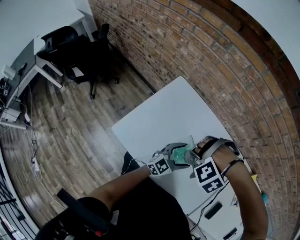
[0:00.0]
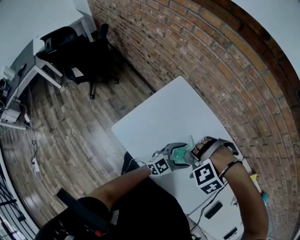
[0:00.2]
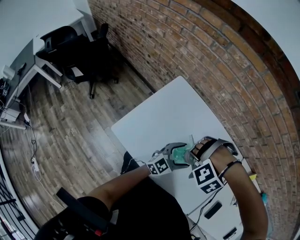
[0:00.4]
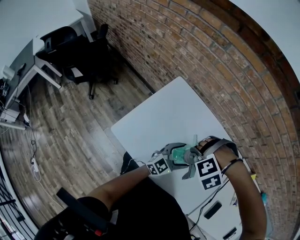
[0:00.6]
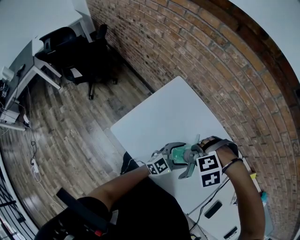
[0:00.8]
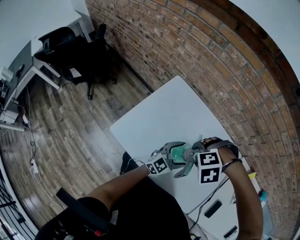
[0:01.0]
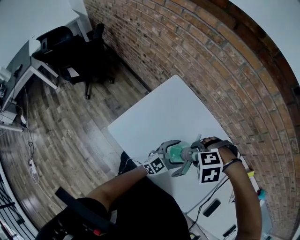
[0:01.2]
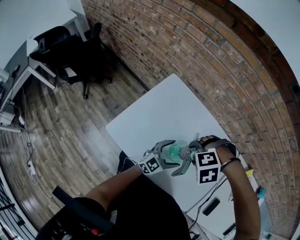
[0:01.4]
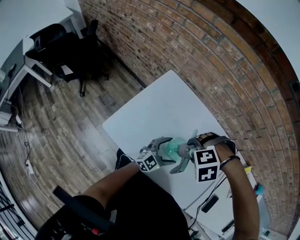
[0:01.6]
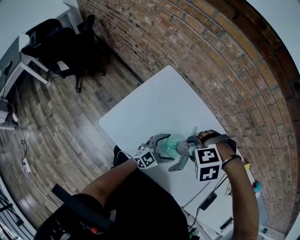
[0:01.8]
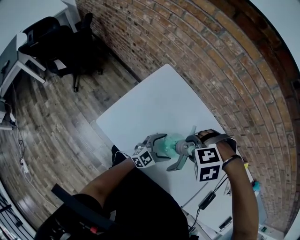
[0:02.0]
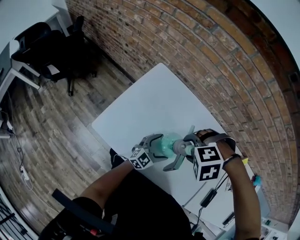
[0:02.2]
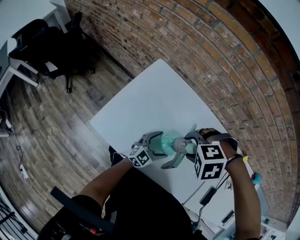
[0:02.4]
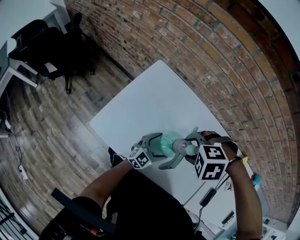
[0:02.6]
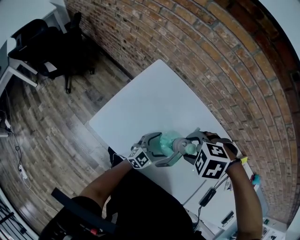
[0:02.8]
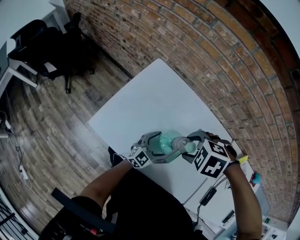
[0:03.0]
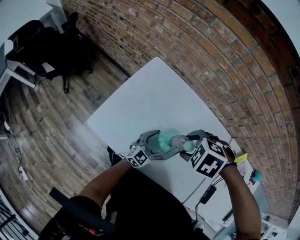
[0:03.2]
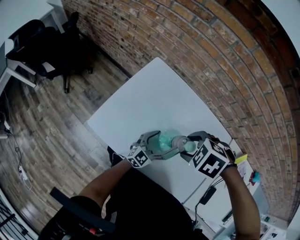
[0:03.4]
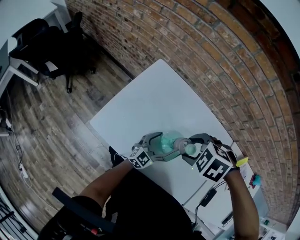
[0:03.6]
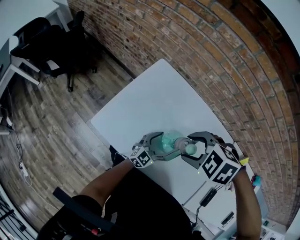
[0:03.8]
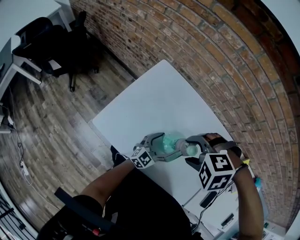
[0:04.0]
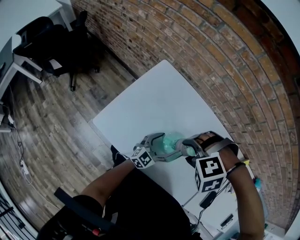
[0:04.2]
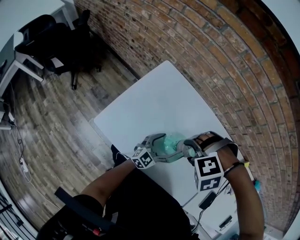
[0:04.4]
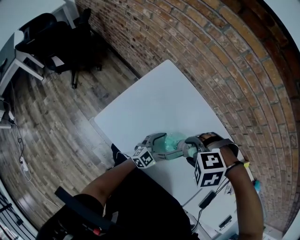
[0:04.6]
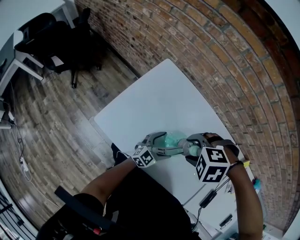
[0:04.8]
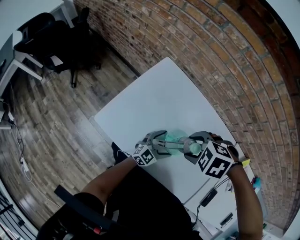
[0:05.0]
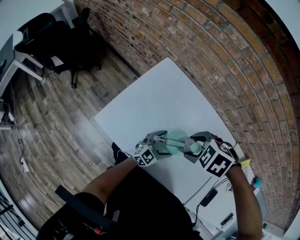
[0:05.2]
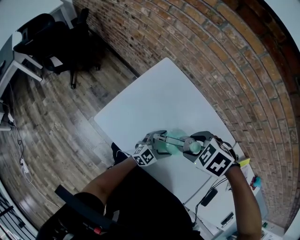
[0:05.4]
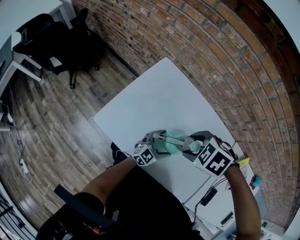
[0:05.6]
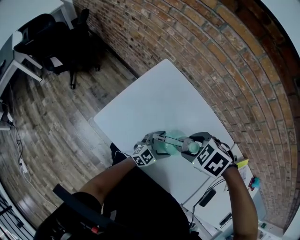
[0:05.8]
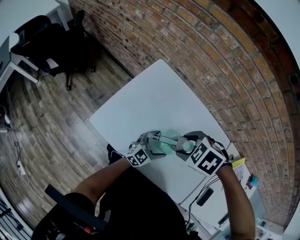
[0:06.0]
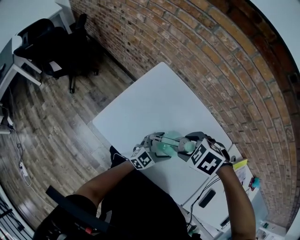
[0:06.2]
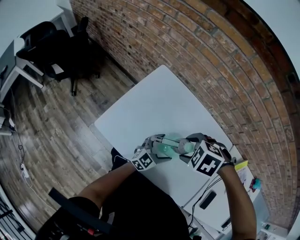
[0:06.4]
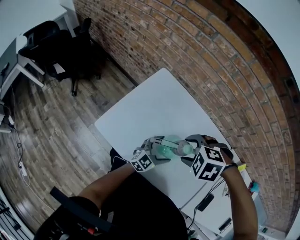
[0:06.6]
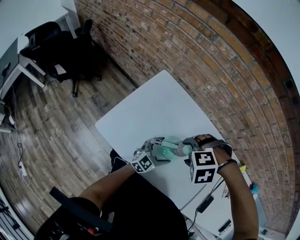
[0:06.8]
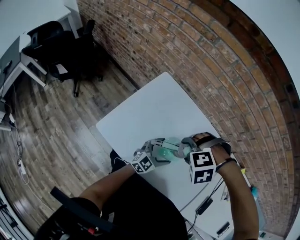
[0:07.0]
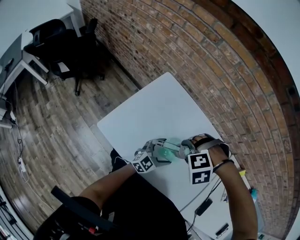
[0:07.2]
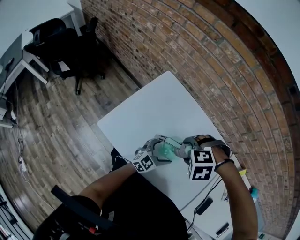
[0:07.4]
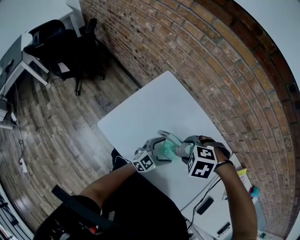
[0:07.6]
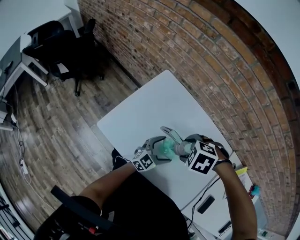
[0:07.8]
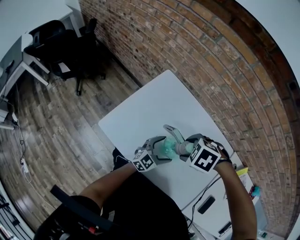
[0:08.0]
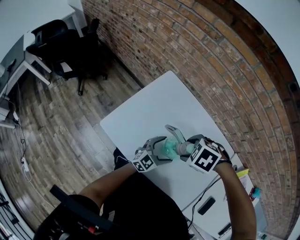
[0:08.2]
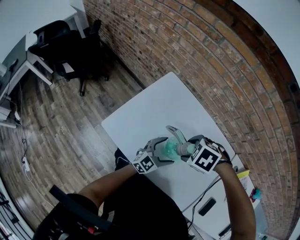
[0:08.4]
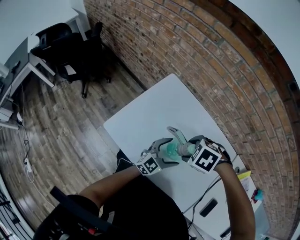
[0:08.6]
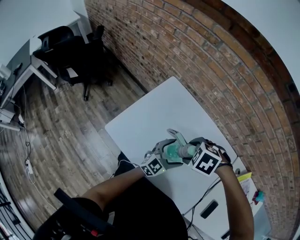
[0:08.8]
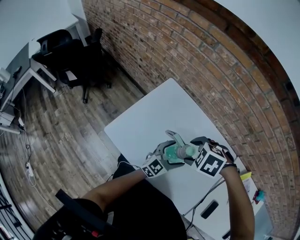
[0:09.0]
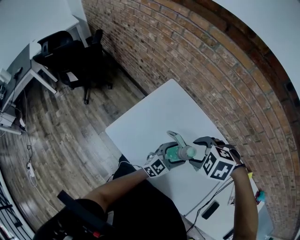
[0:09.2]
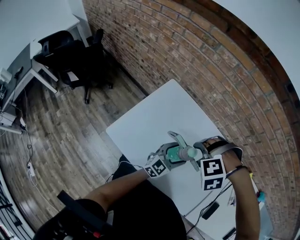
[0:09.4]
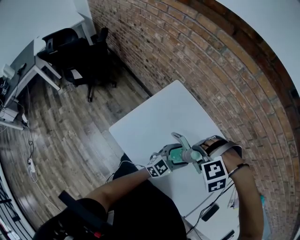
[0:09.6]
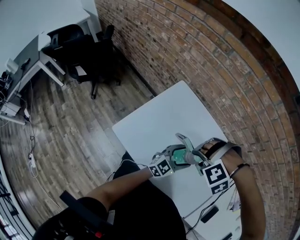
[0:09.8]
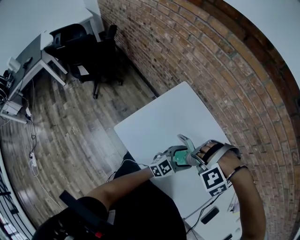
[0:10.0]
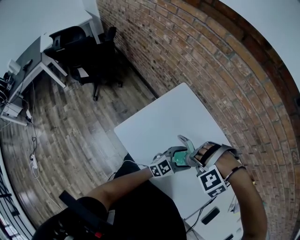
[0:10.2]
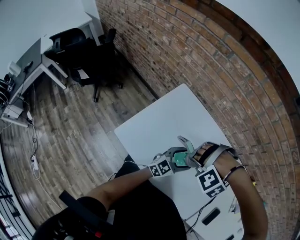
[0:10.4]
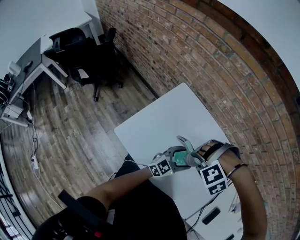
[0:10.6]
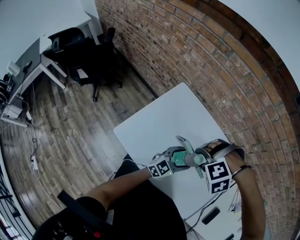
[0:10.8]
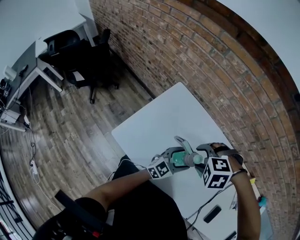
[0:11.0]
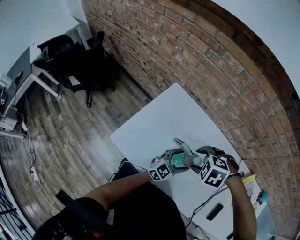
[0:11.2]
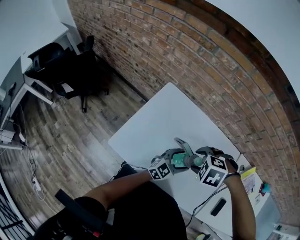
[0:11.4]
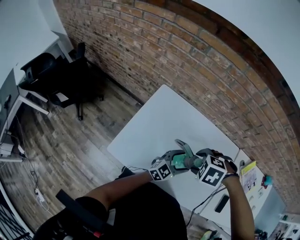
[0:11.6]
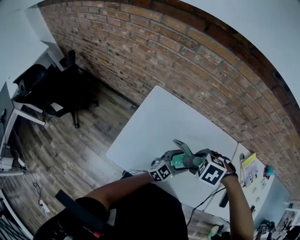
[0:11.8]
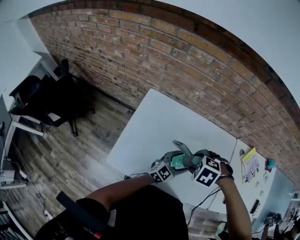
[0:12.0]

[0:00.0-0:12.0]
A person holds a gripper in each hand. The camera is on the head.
0:00.0 to 0:01.6: The right gripper swivels some 30 degrees. Meanwhile the left gripper changes place by about 5 cm.
0:01.6 to 0:03.0: The left gripper is displaced downward by some 5 cm, while the right gripper changes its angle by roughly 40 degrees.
0:03.0 to 0:04.4: The right gripper turns by some 40 degrees.
0:04.4 to 0:06.0: The right gripper twists approximately 50 degrees clockwise, seen from behind.
0:06.0 to 0:07.6: The right gripper swivels about 30 degrees.
0:07.6 to 0:09.0: The left gripper goes approximately 5 cm upward.
0:09.0 to 0:10.4: The right gripper rotates around the line of its fingers by about 70 degrees, counterclockwise from behind.
0:10.4 to 0:12.0: The right gripper twists approximately 90 degrees clockwise, seen from behind.

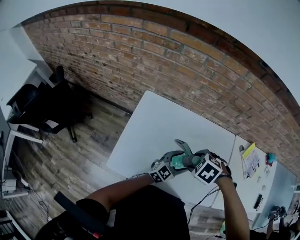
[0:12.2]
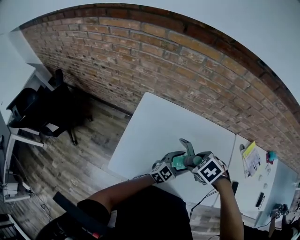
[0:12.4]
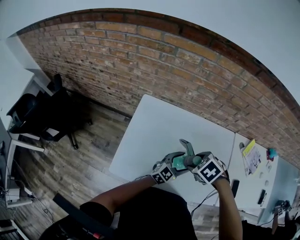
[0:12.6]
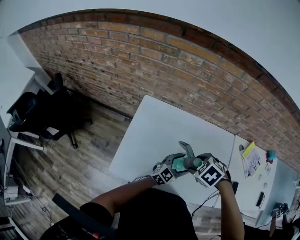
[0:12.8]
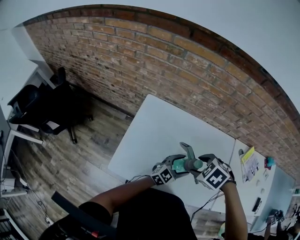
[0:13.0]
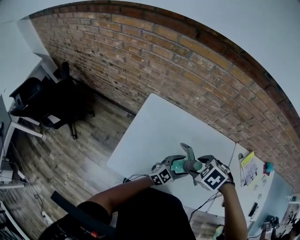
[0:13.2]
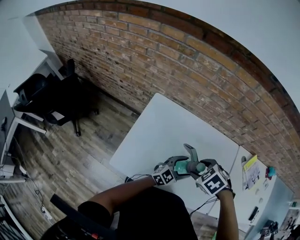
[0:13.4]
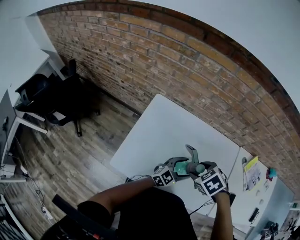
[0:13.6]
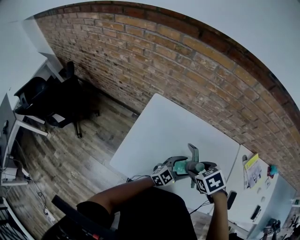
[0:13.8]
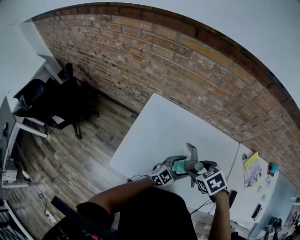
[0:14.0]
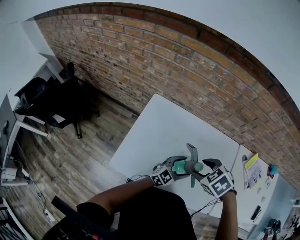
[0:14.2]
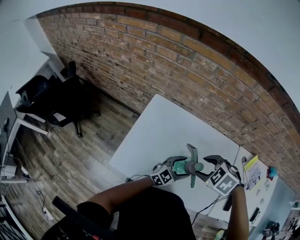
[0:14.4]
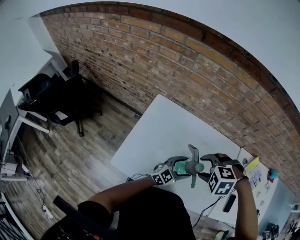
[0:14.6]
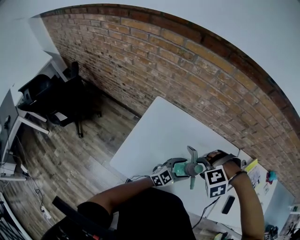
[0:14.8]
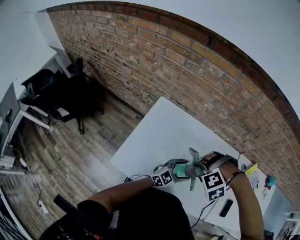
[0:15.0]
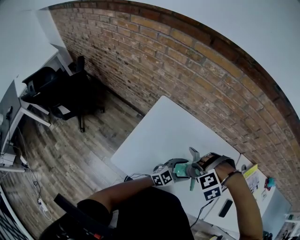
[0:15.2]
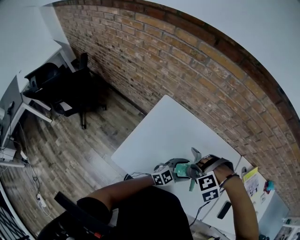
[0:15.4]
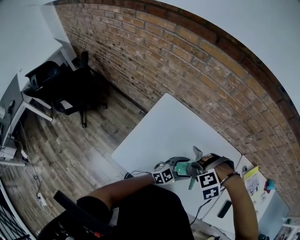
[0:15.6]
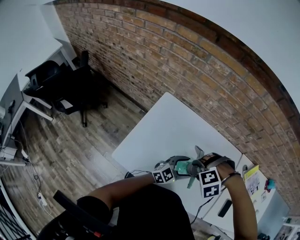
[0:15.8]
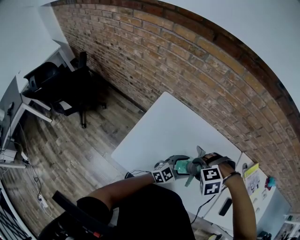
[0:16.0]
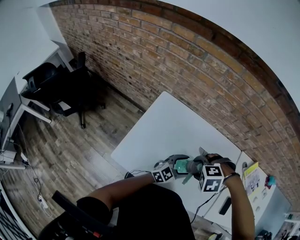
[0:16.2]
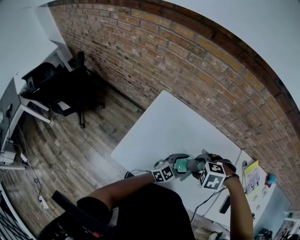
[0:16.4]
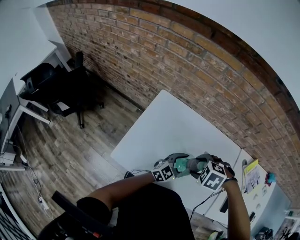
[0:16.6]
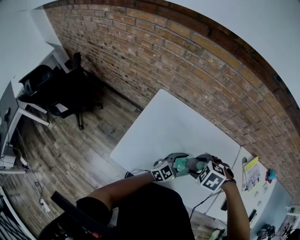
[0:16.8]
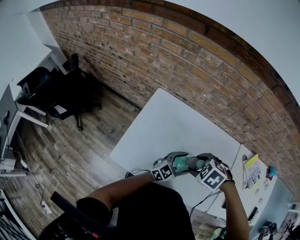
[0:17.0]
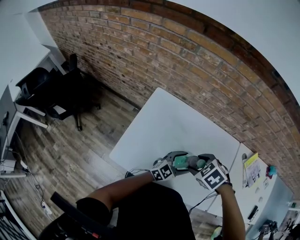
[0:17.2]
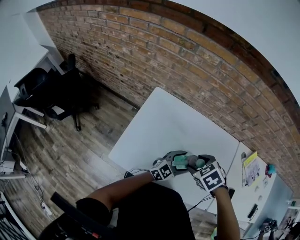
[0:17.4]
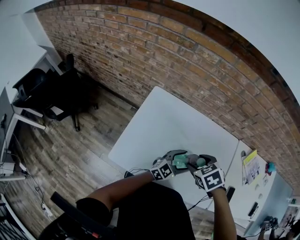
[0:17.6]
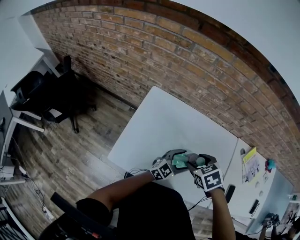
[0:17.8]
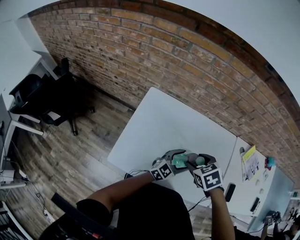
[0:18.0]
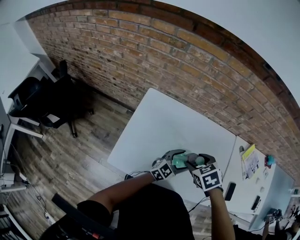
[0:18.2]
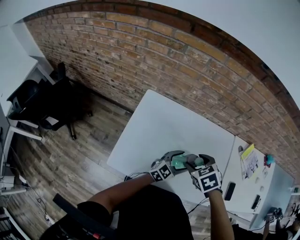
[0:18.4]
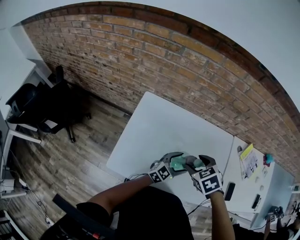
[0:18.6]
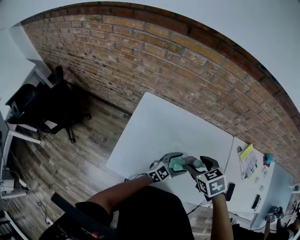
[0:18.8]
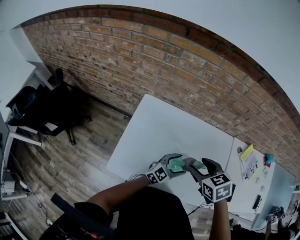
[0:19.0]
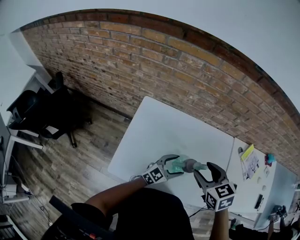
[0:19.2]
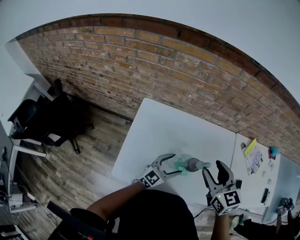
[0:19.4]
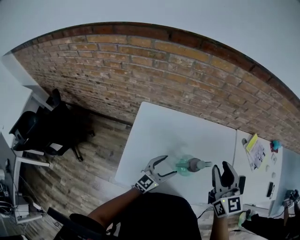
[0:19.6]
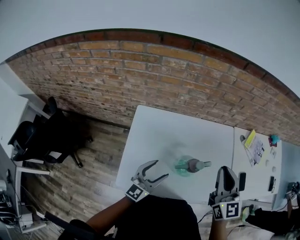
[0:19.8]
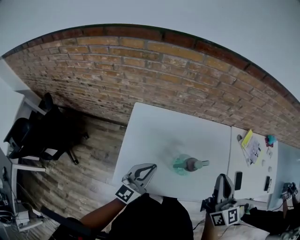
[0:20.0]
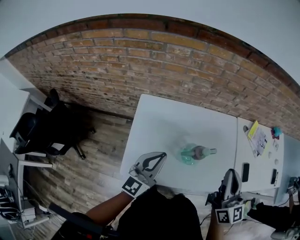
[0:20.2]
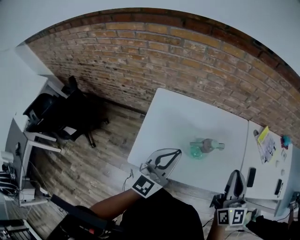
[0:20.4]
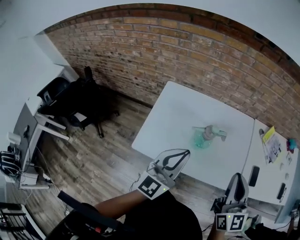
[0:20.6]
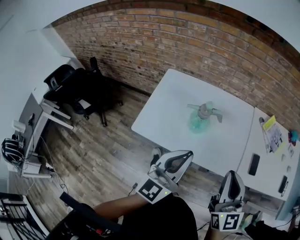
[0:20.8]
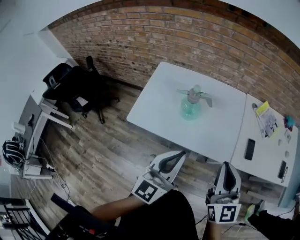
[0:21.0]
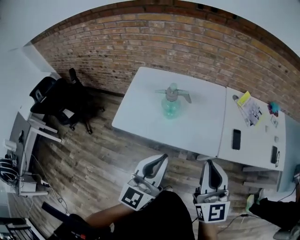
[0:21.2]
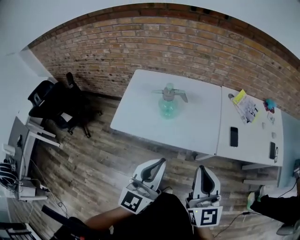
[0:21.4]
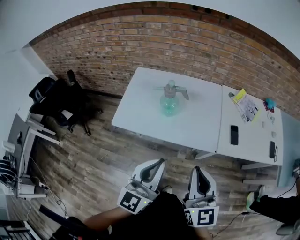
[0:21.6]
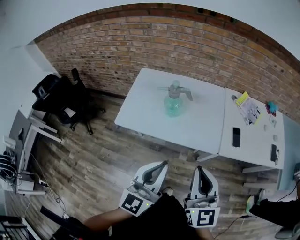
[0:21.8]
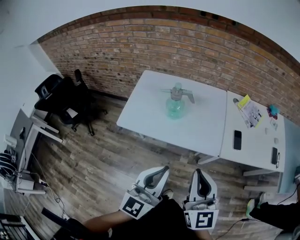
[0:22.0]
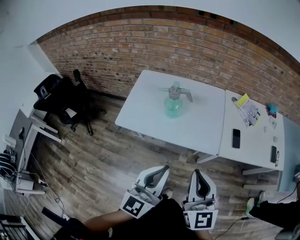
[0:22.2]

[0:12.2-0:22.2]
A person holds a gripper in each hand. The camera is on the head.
0:12.2 to 0:13.6: There are only small adjustments of the grippers.
0:13.6 to 0:15.0: The right gripper twists about 80 degrees counterclockwise, seen from behind.
0:15.0 to 0:16.4: The right gripper swivels about 40 degrees.
0:16.4 to 0:18.0: The right gripper twists roughly 60 degrees clockwise, seen from behind.
0:18.0 to 0:19.4: The left gripper moves to the left, approximately 5 cm; the right gripper moves upward, approximately 10 cm, and points its fingers approximately 40 degrees further upward.
0:19.4 to 0:20.8: The left gripper moves upward and backward, some 30 cm, changes its angle by roughly 30 degrees, and closes. The right gripper heads backward and to the right, covering roughly 30 cm, swivels some 30 degrees, and closes.
0:20.8 to 0:22.2: Both grippers travel together backward, roughly 20 cm.

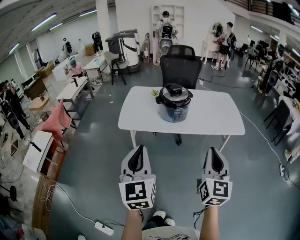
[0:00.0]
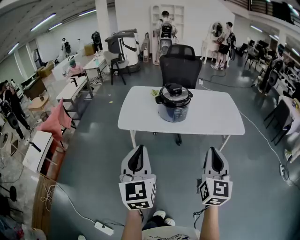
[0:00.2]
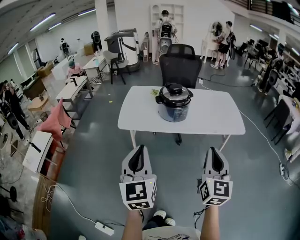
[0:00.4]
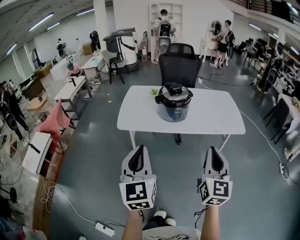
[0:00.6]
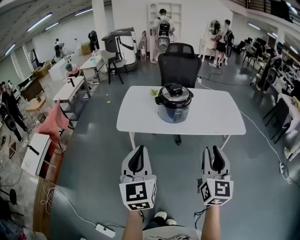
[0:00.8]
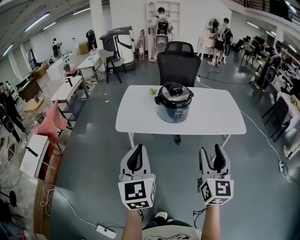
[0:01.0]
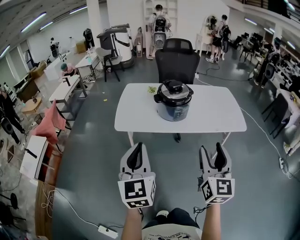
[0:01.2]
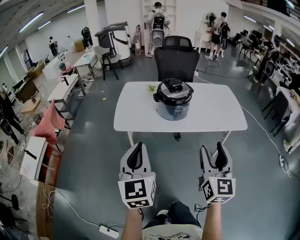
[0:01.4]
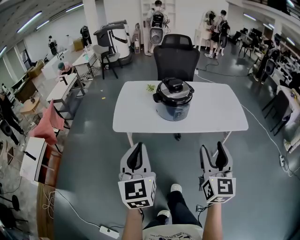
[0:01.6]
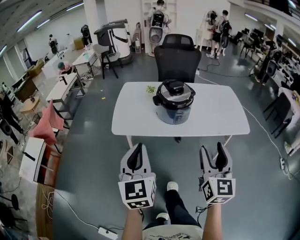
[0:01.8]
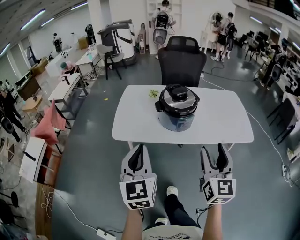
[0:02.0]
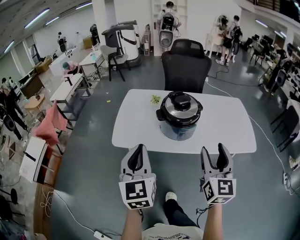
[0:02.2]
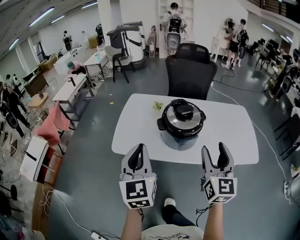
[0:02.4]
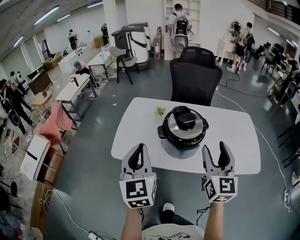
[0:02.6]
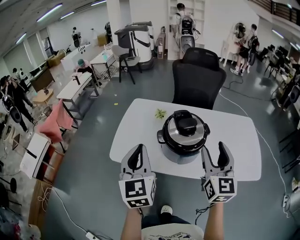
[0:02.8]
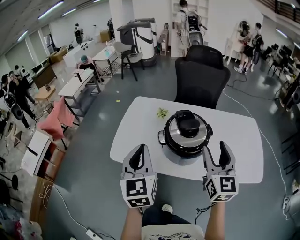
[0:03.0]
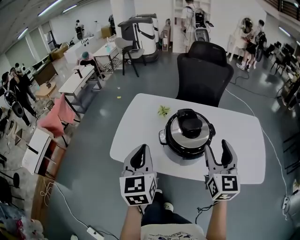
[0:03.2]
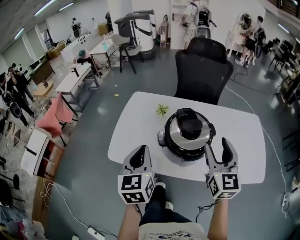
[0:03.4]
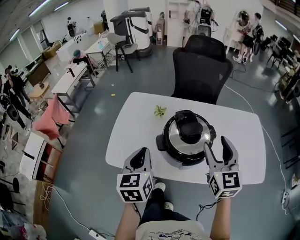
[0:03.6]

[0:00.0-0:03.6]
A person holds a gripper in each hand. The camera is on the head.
0:00.0 to 0:01.8: Both grippers move forward, about 15 cm. The right gripper opens its fingers.
0:01.8 to 0:03.6: Both grippers travel together forward, roughly 40 cm. The left gripper changes its angle by some 20 degrees.
